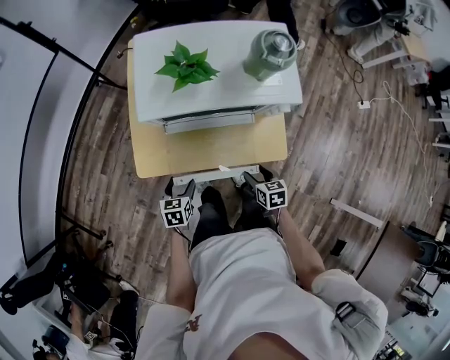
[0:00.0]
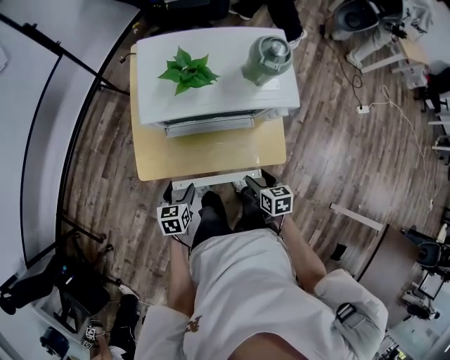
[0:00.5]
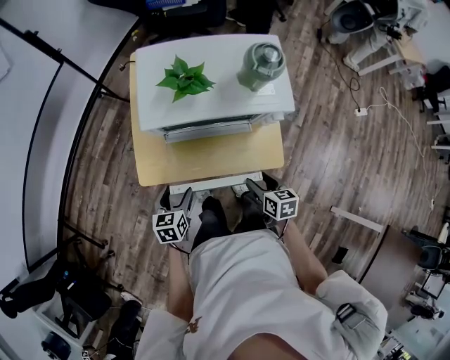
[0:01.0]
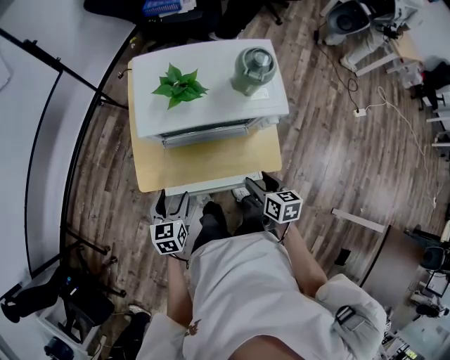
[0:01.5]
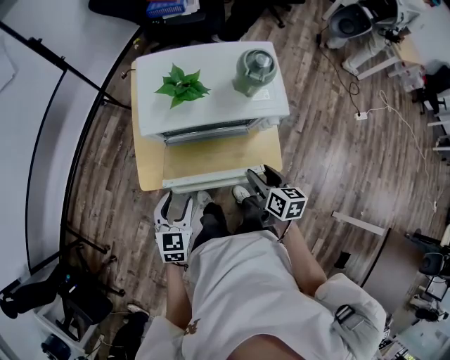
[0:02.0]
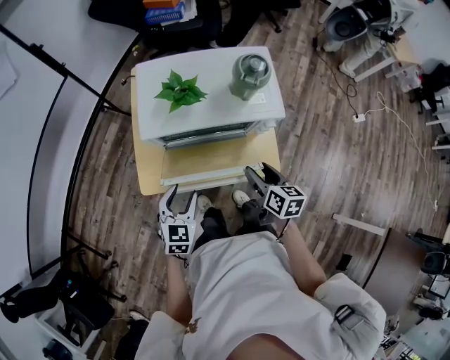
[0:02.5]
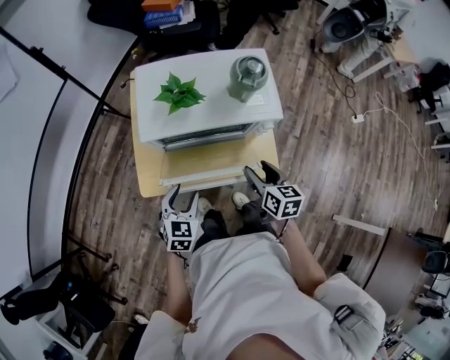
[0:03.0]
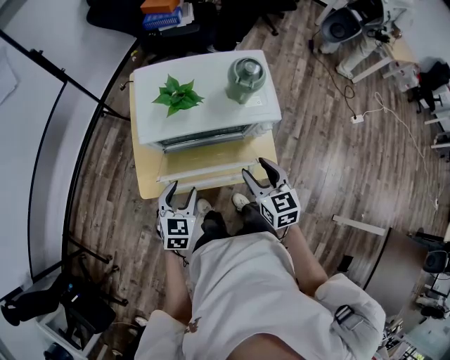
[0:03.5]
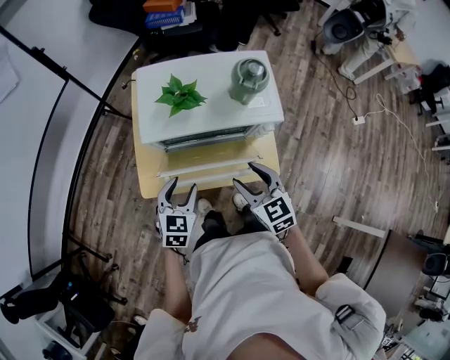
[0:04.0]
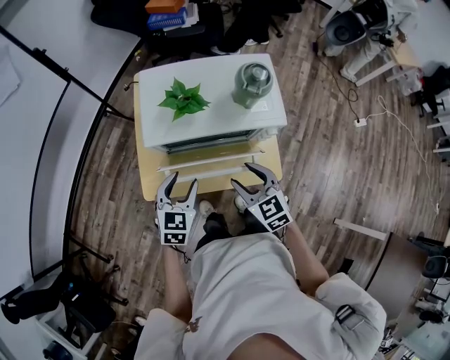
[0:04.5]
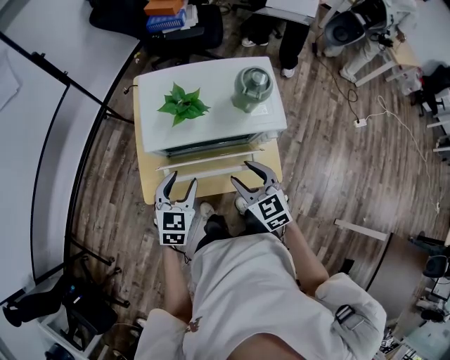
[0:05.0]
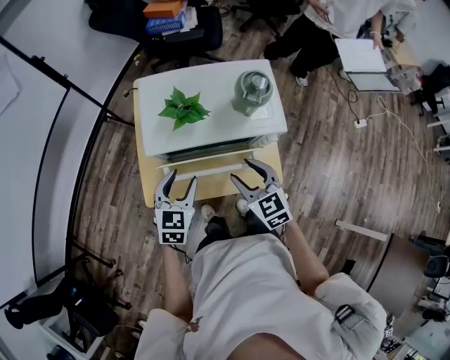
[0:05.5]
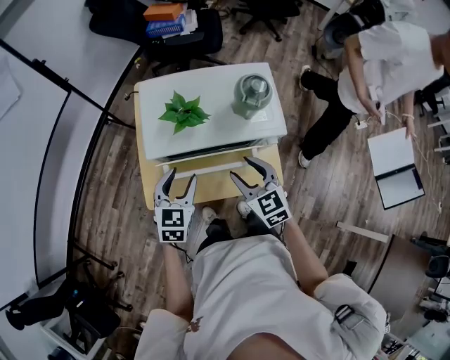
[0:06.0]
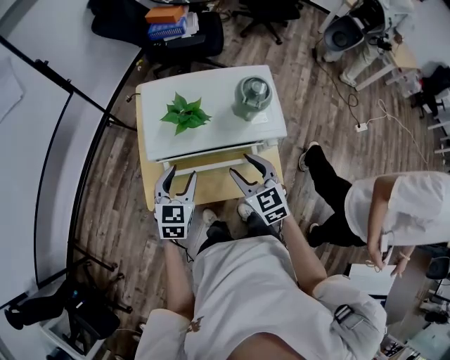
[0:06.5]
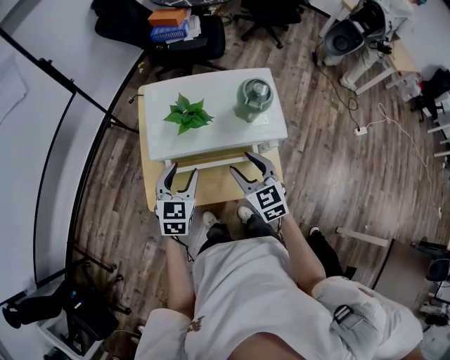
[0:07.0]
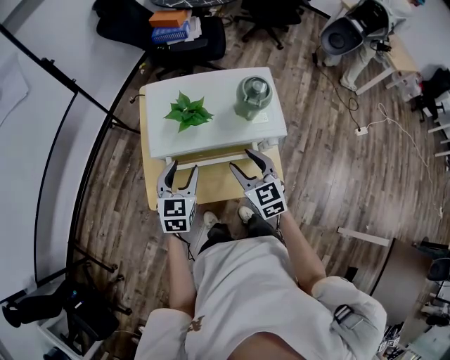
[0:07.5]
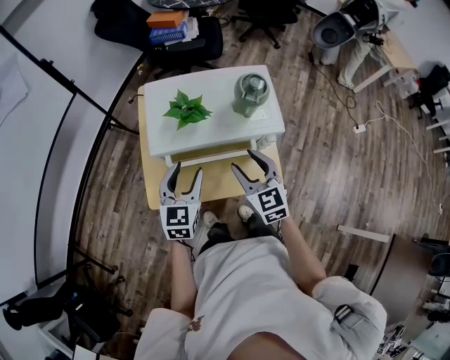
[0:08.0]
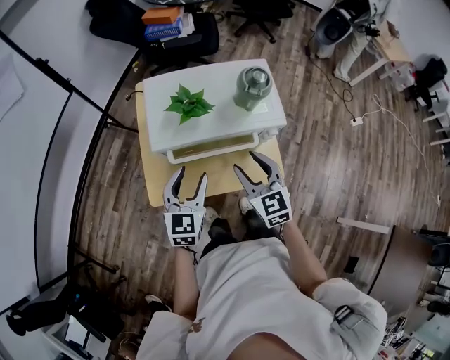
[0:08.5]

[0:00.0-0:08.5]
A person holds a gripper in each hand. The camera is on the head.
0:00.0 to 0:02.0: The two grippers go approximately 15 cm upward. The right gripper turns by some 20 degrees. The left gripper changes its angle by roughly 30 degrees.
0:02.0 to 0:04.0: The right gripper shifts some 10 cm upward and to the left, and twists approximately 40 degrees counterclockwise, seen from behind. The left gripper goes some 5 cm forward.
0:04.0 to 0:06.5: The two grippers go approximately 10 cm forward.
0:06.5 to 0:08.5: The left gripper ends up about 5 cm from where it was.

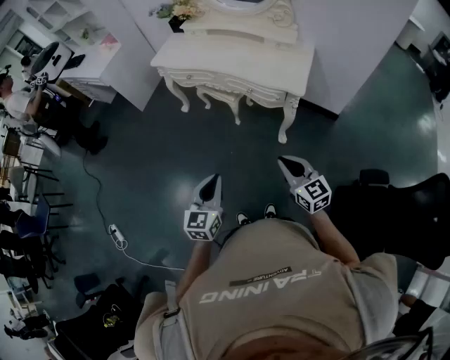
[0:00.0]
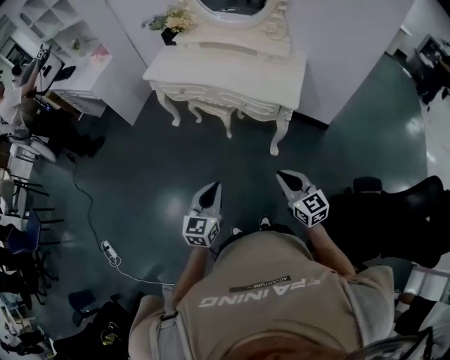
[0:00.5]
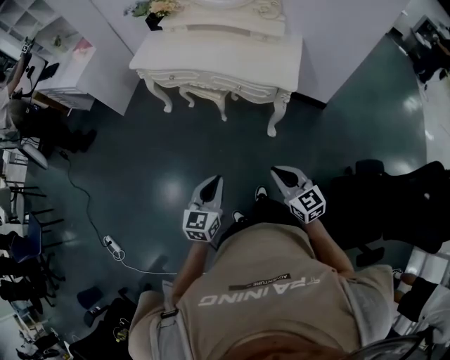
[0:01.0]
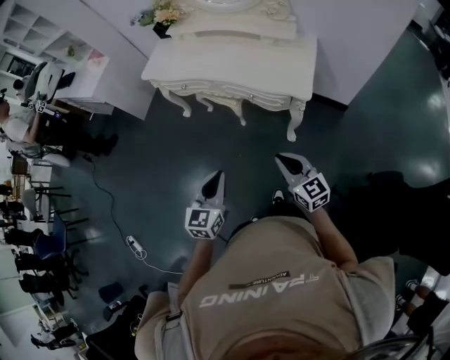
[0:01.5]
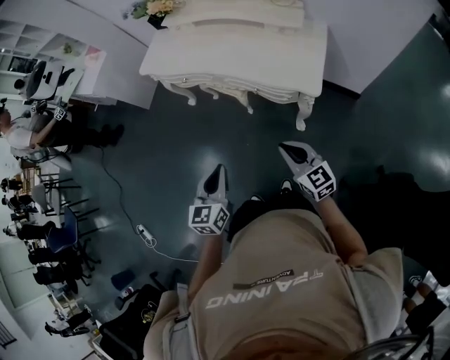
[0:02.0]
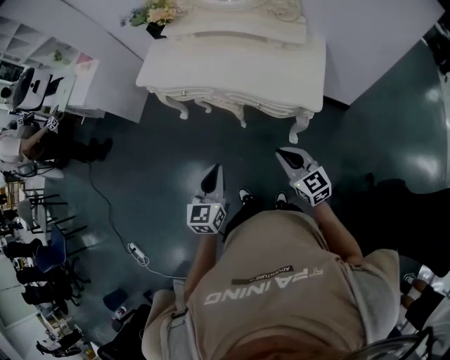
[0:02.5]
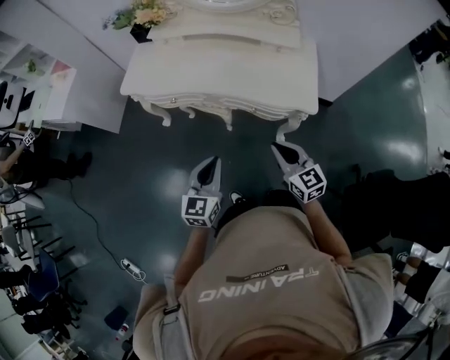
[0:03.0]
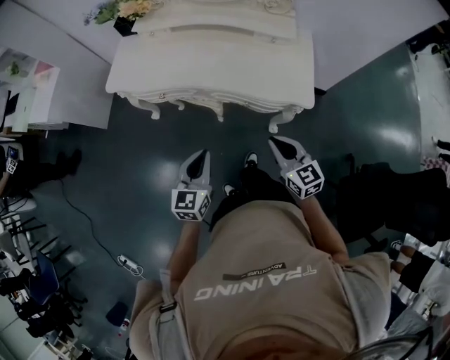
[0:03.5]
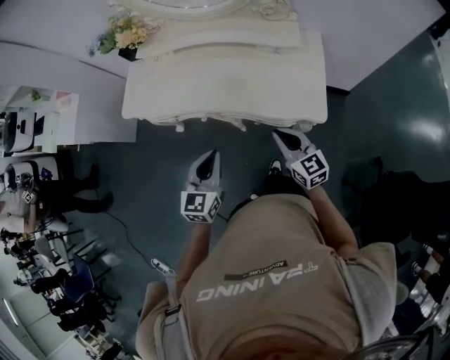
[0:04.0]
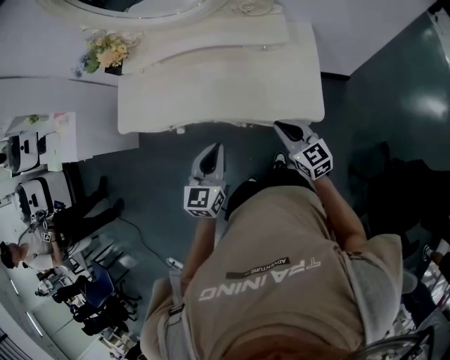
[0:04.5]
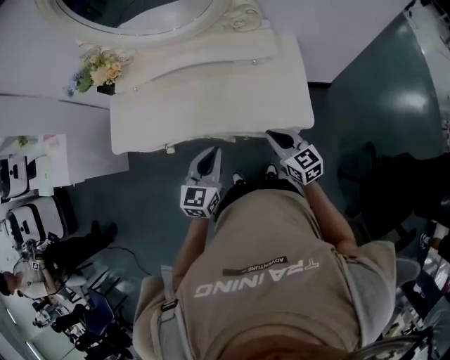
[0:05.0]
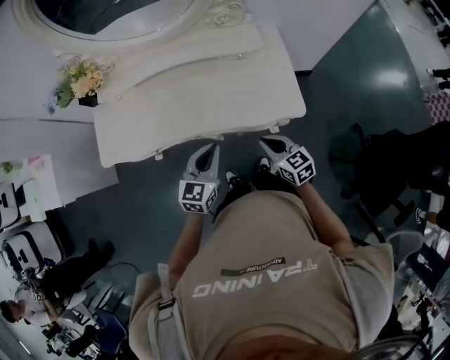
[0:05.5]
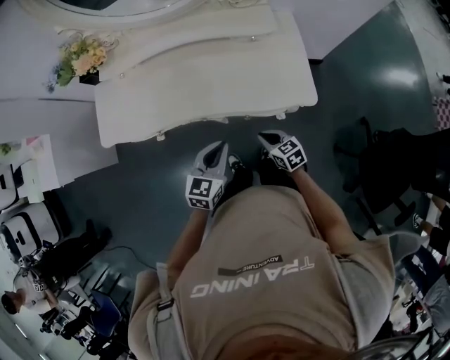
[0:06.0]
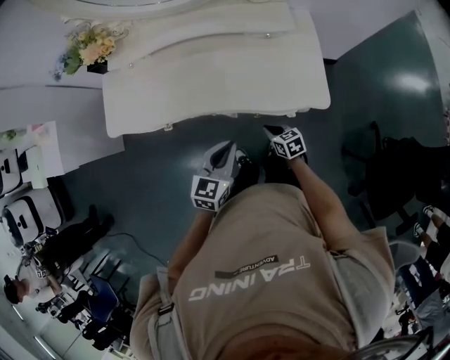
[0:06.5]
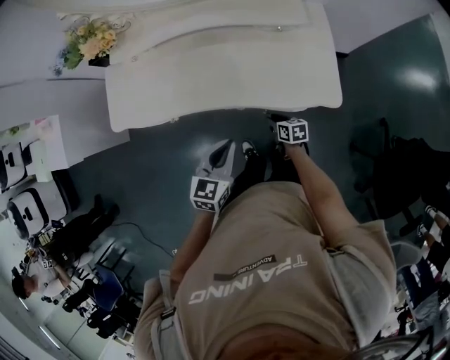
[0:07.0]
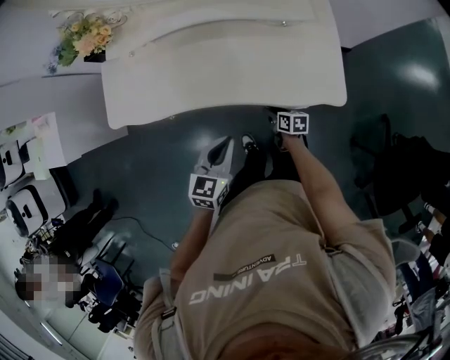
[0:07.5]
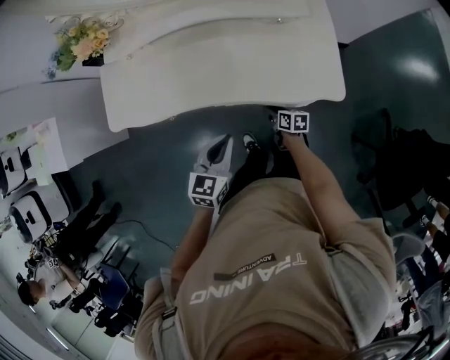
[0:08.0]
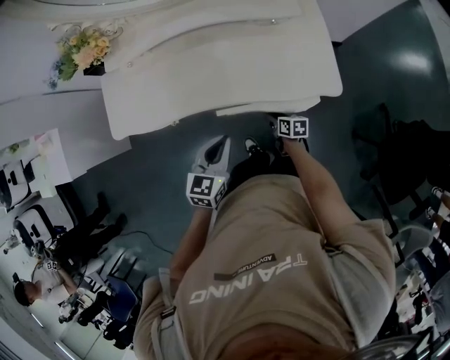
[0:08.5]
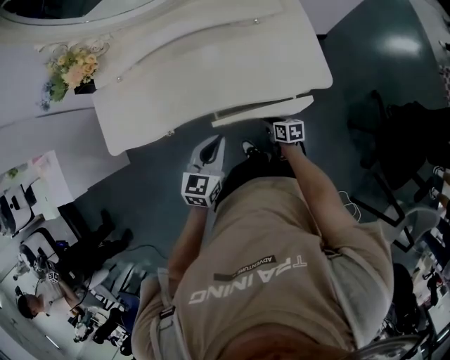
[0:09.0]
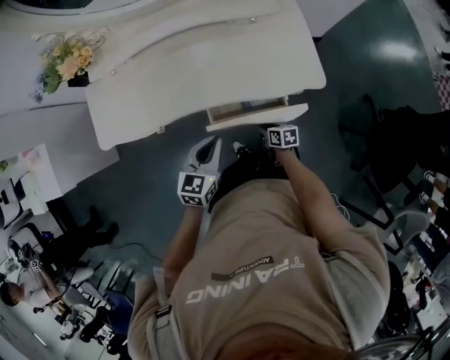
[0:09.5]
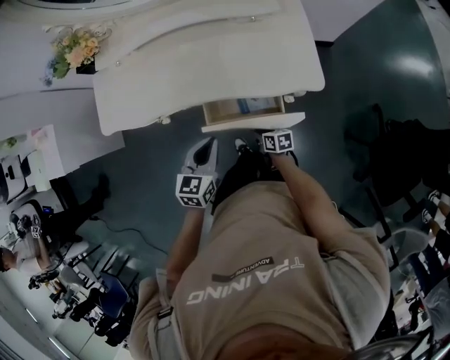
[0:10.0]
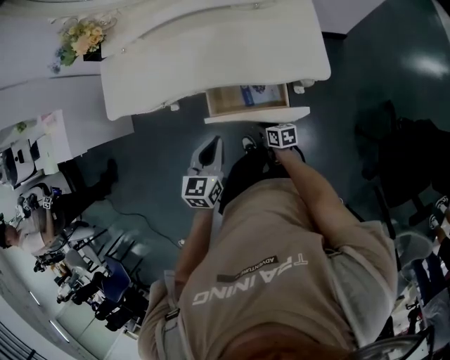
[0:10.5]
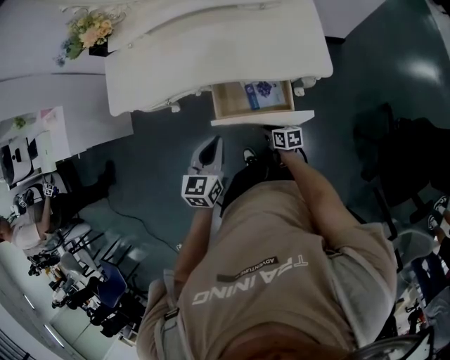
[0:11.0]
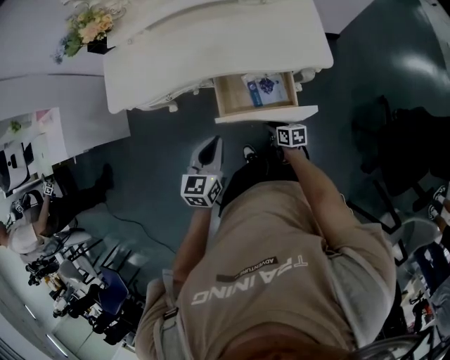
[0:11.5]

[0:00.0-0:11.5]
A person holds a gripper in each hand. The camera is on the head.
0:00.0 to 0:02.0: The grippers both shift forward by some 25 cm.
0:02.0 to 0:04.0: The grippers both shift forward by roughly 25 cm. The left gripper turns by about 20 degrees.
0:04.0 to 0:06.0: The left gripper travels forward and downward by approximately 10 cm, and turns by some 20 degrees, while the right gripper goes about 15 cm downward, and turns by roughly 30 degrees.
0:06.0 to 0:07.5: The left gripper changes place by about 5 cm. The right gripper moves downward and forward, roughly 15 cm, swivels about 30 degrees, and opens.
0:07.5 to 0:09.5: The right gripper is displaced backward by approximately 10 cm.
0:09.5 to 0:11.5: The grippers both shift backward by about 15 cm.

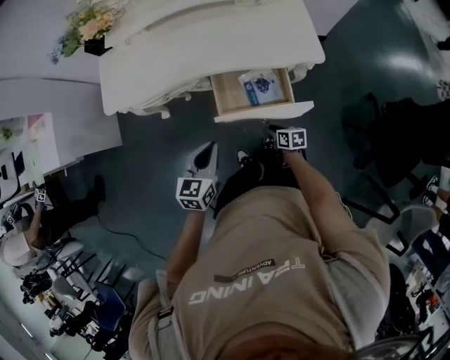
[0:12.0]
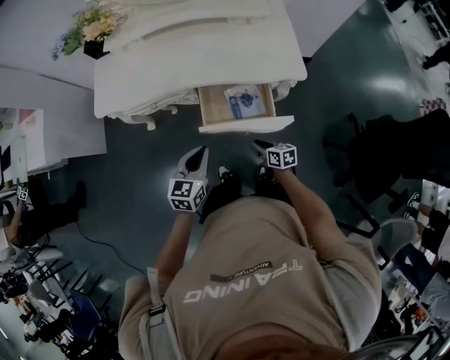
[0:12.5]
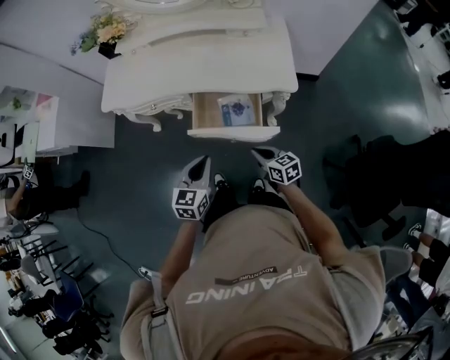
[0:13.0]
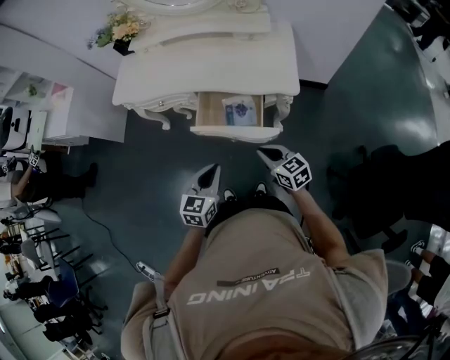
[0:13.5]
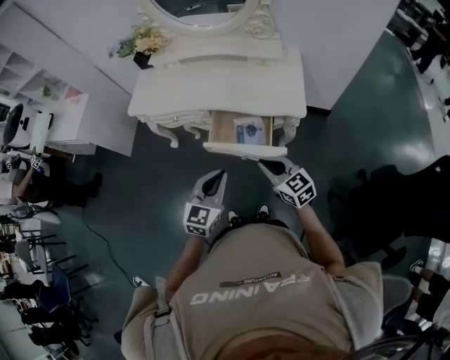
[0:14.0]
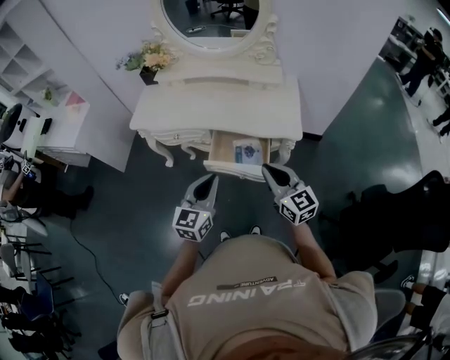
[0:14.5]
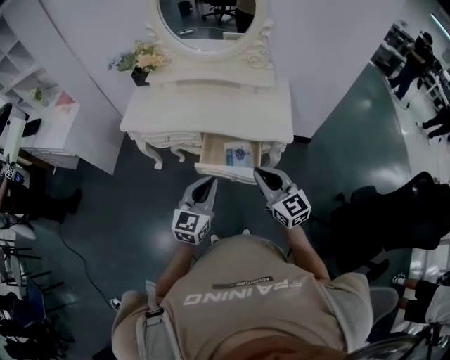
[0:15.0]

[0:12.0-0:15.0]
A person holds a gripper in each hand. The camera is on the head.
0:12.0 to 0:13.5: The right gripper travels upward and to the right by some 25 cm, twists some 40 degrees counterclockwise, seen from behind, and closes, while the left gripper heads to the right and backward, covering about 20 cm.
0:13.5 to 0:15.0: The right gripper travels upward by some 20 cm, and swivels some 30 degrees, while the left gripper heads upward and to the left, covering roughly 15 cm.

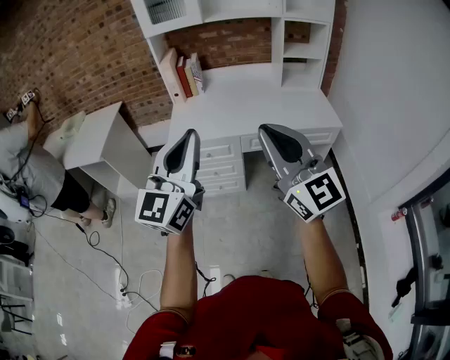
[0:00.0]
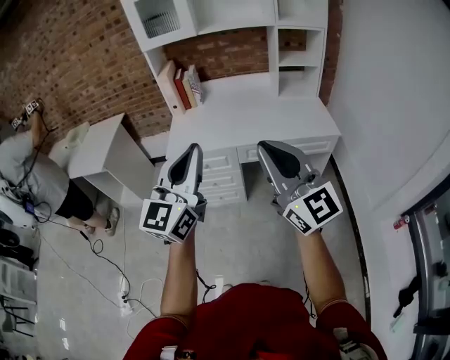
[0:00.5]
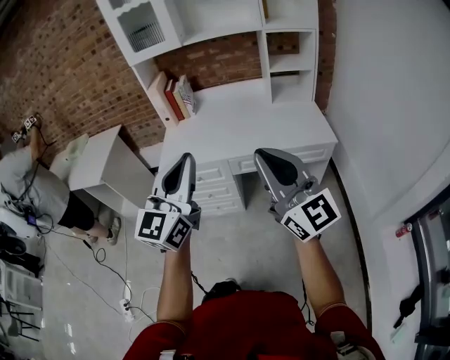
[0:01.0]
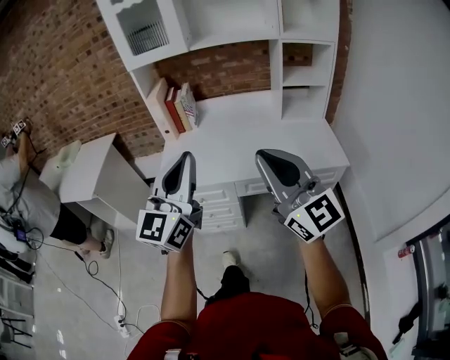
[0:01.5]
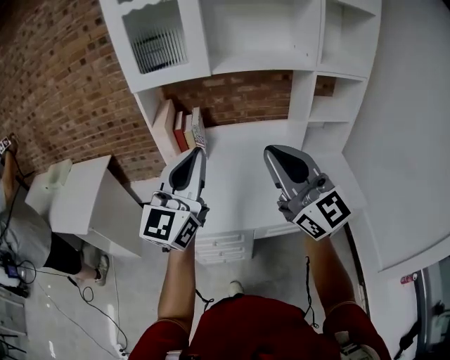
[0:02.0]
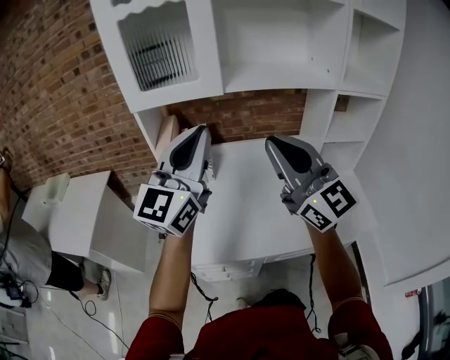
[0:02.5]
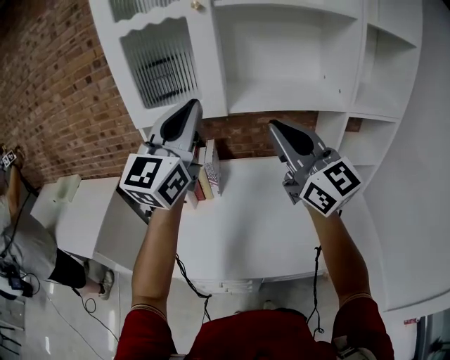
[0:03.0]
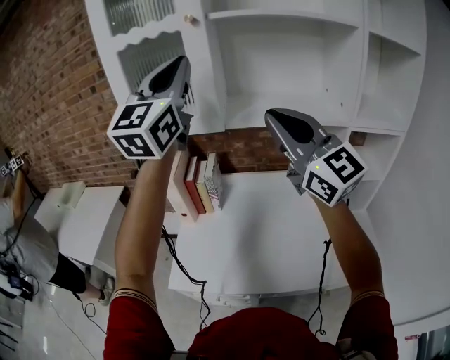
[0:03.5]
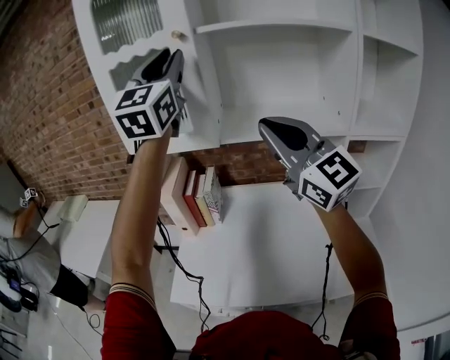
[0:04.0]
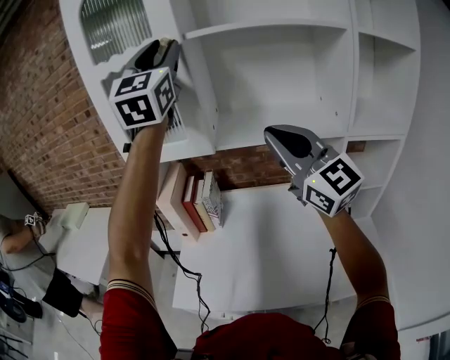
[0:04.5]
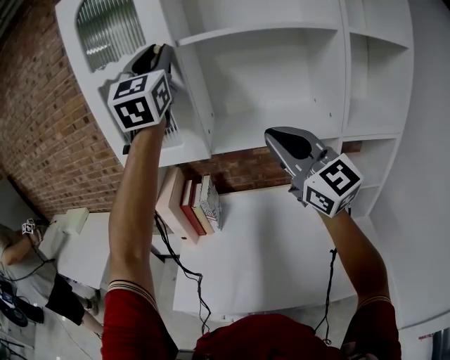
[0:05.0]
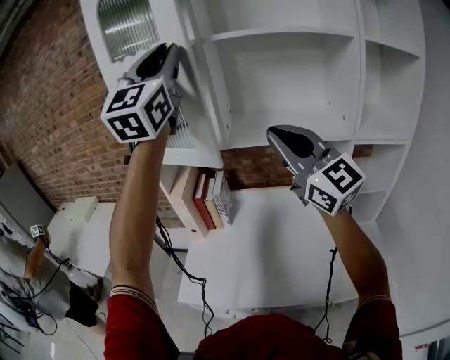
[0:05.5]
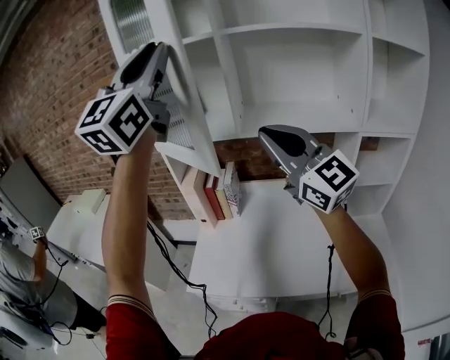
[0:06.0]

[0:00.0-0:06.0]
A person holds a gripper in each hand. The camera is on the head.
0:00.0 to 0:02.0: The two grippers go some 40 cm forward.
0:02.0 to 0:04.0: Both grippers move forward and upward, some 35 cm. The left gripper turns by approximately 20 degrees.
0:04.0 to 0:06.0: The left gripper is displaced backward and to the left by roughly 15 cm. Meanwhile the right gripper shifts roughly 5 cm to the left.
